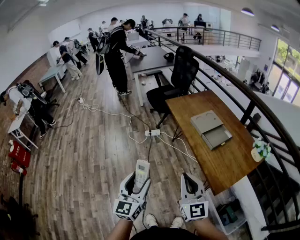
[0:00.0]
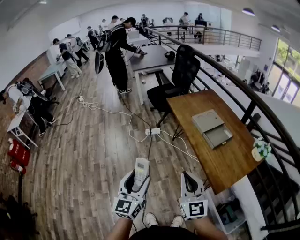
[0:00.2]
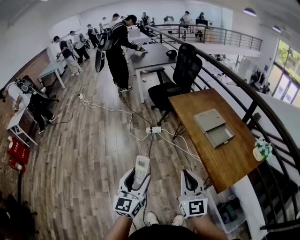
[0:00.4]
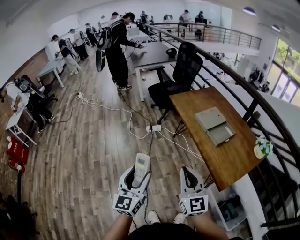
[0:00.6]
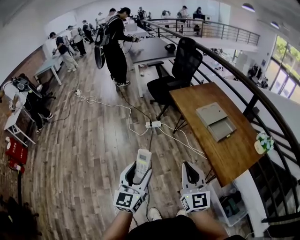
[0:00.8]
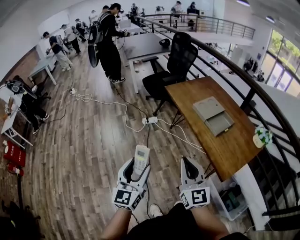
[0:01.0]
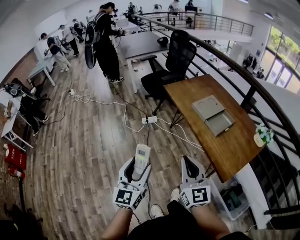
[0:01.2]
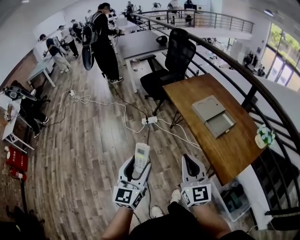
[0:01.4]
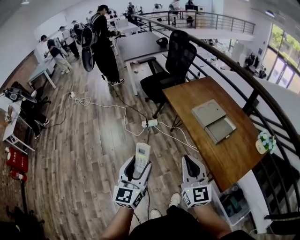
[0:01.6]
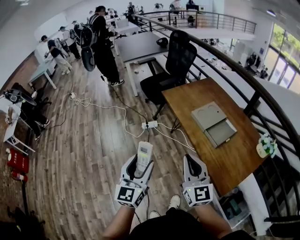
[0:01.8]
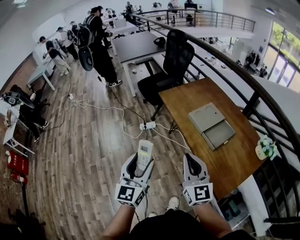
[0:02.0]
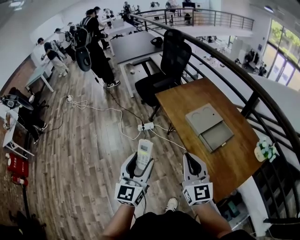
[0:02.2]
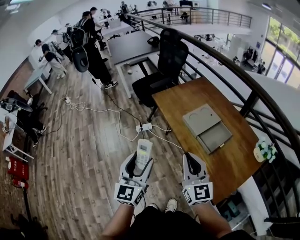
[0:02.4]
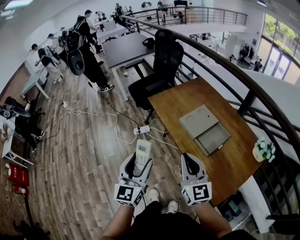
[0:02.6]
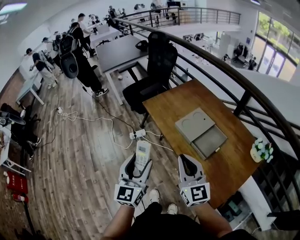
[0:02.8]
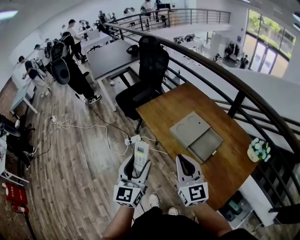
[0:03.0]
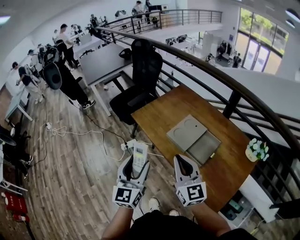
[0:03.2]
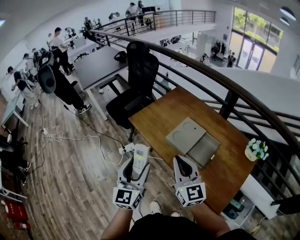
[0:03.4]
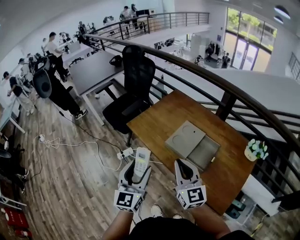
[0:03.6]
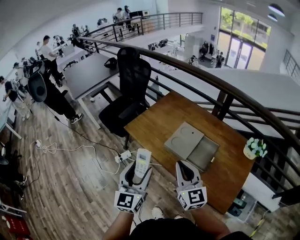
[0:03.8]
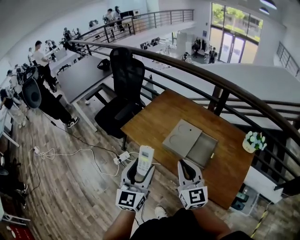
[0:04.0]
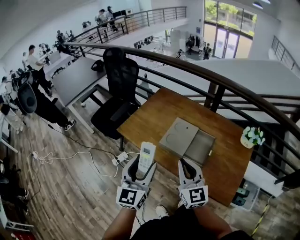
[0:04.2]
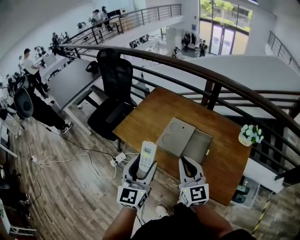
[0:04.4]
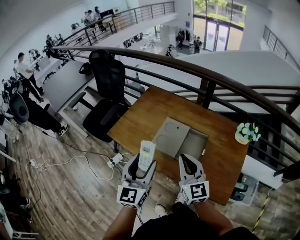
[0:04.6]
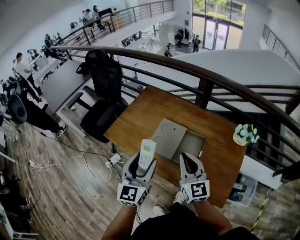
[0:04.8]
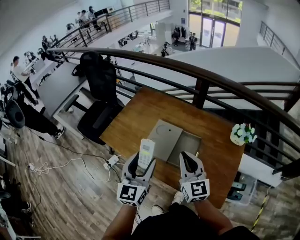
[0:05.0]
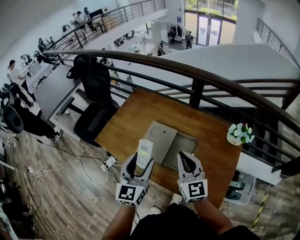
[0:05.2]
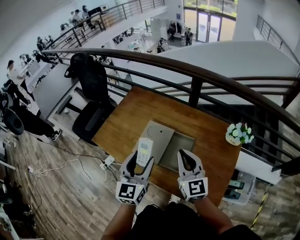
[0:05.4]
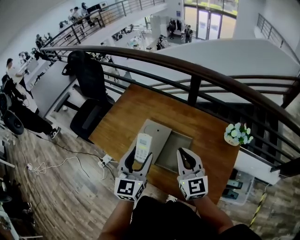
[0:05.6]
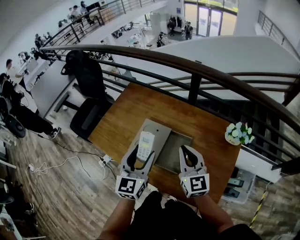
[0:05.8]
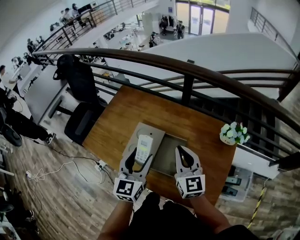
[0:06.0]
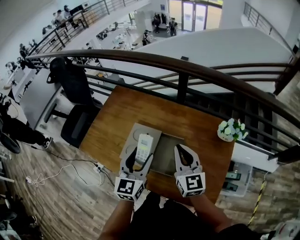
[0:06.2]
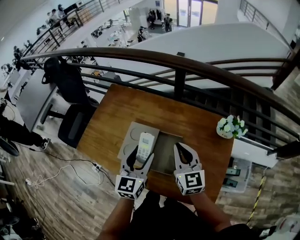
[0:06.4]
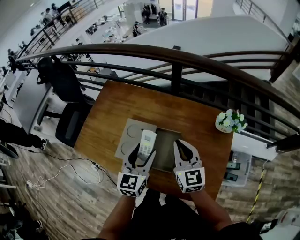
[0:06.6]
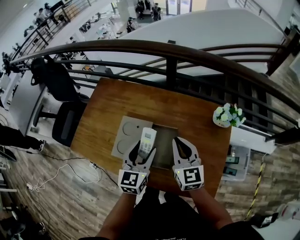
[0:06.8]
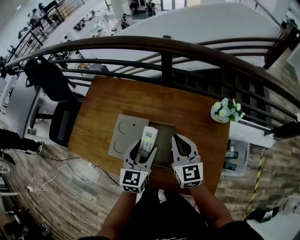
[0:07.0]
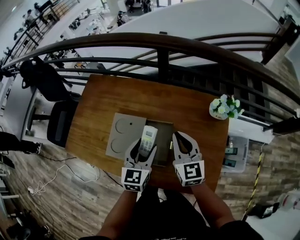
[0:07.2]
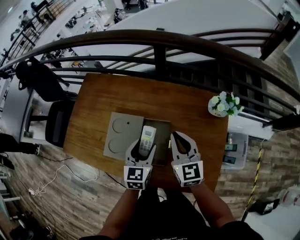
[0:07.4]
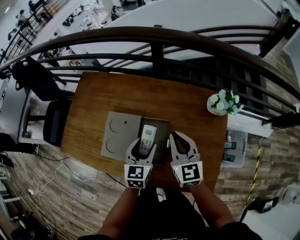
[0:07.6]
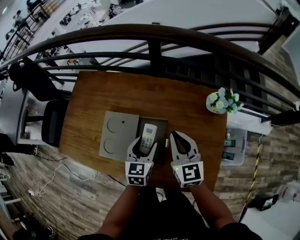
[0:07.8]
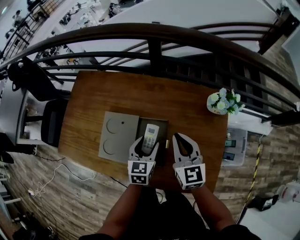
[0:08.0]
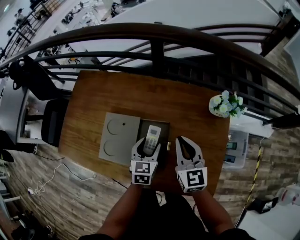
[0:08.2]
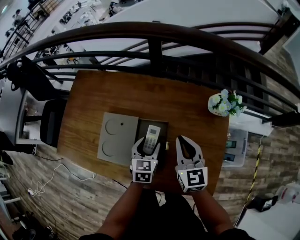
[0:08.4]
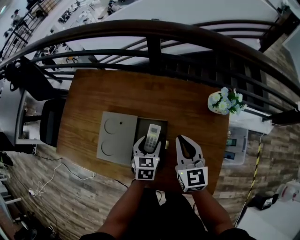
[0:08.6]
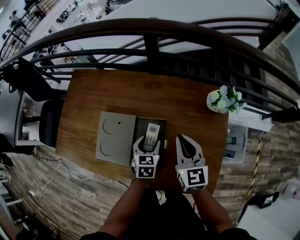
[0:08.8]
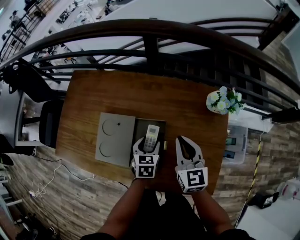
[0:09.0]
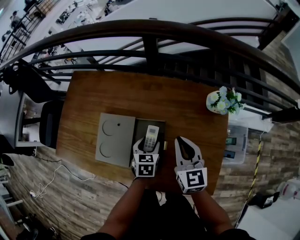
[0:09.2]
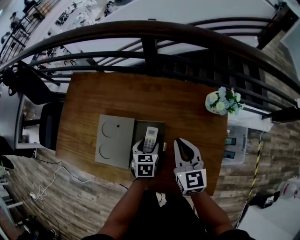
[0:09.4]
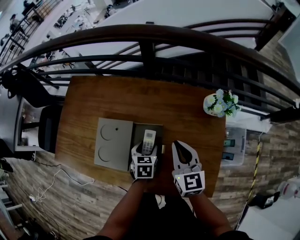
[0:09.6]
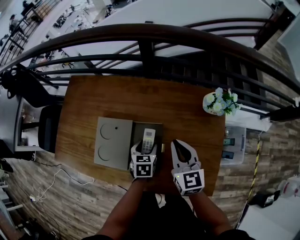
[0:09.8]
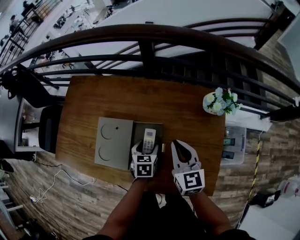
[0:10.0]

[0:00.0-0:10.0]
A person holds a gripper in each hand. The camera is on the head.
0:00.0 to 0:01.4: The grippers both shift forward by about 10 cm.
0:01.4 to 0:02.8: Both grippers travel together forward and to the right, some 25 cm.
0:02.8 to 0:04.2: Both grippers move forward, approximately 15 cm. The right gripper rotates some 20 degrees, while the left gripper rotates some 20 degrees.
0:04.2 to 0:05.8: Both grippers travel together to the right and forward, about 25 cm.
0:05.8 to 0:07.2: Both grippers move downward, to the right and forward, approximately 15 cm. The left gripper changes its angle by roughly 20 degrees.
0:07.2 to 0:08.6: The left gripper goes approximately 15 cm downward, and rotates some 20 degrees; the right gripper moves roughly 5 cm.
0:08.6 to 0:10.0: There are only small adjustments of the grippers.

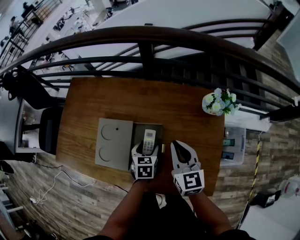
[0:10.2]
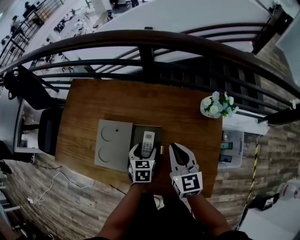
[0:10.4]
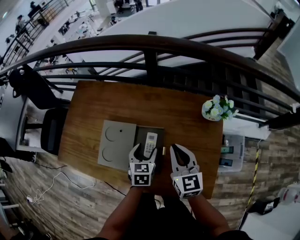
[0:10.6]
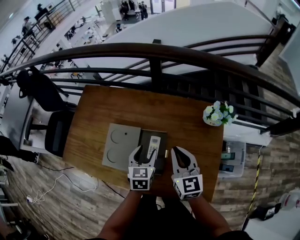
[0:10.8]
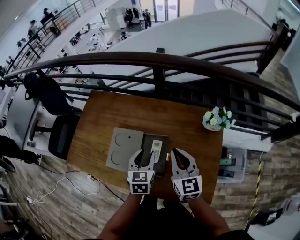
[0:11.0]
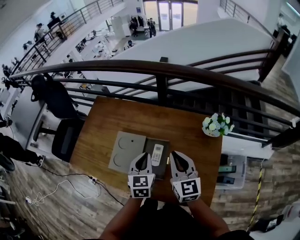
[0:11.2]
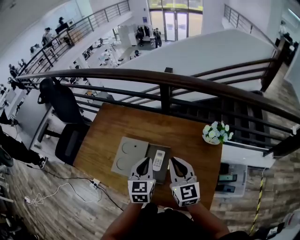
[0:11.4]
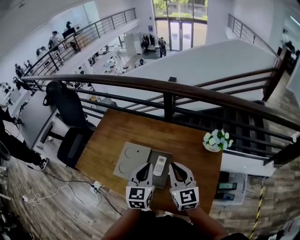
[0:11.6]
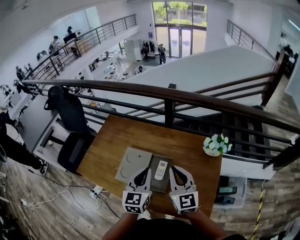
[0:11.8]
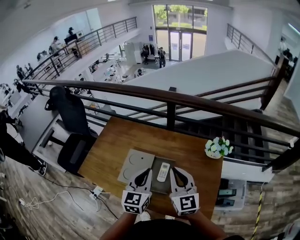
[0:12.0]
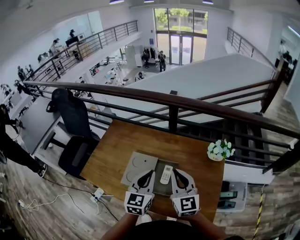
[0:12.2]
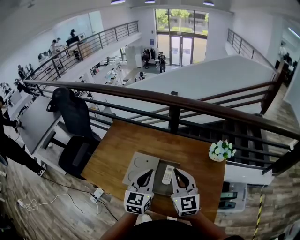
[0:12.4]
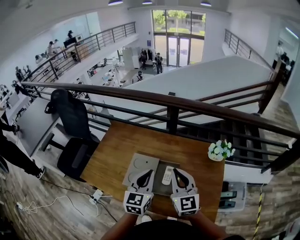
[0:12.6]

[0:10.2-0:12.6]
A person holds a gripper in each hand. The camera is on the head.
0:10.2 to 0:11.4: The right gripper heads upward, covering about 10 cm. The left gripper moves upward, about 25 cm, rotates about 30 degrees, and closes.
0:11.4 to 0:12.6: The right gripper moves to the left and upward, some 10 cm. Meanwhile the left gripper travels upward and to the left by some 10 cm.

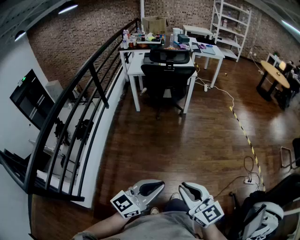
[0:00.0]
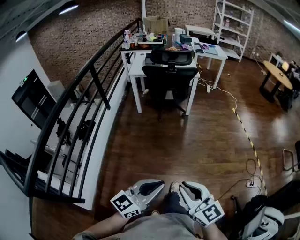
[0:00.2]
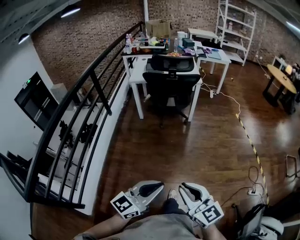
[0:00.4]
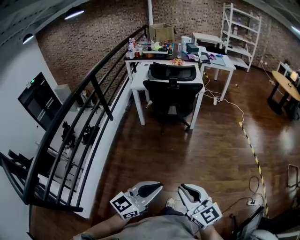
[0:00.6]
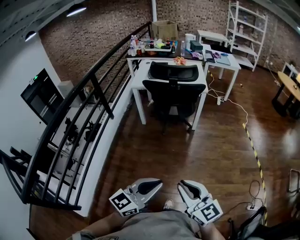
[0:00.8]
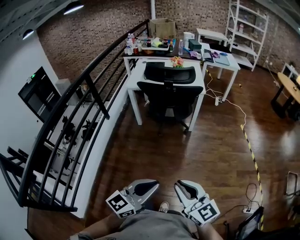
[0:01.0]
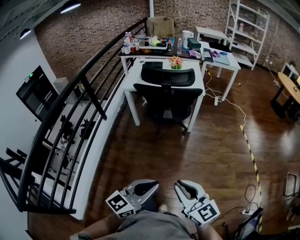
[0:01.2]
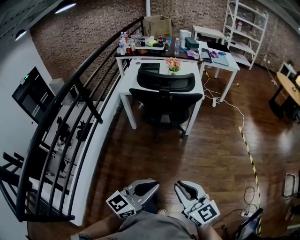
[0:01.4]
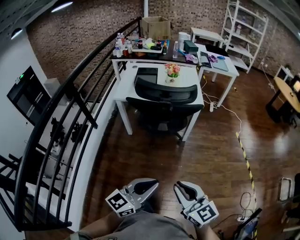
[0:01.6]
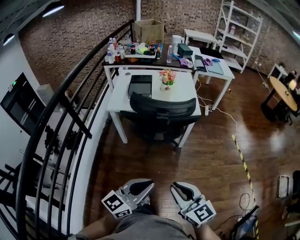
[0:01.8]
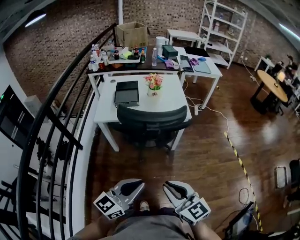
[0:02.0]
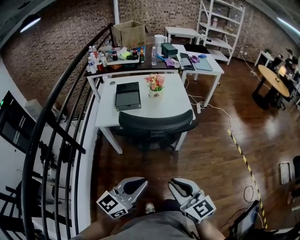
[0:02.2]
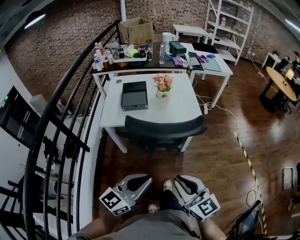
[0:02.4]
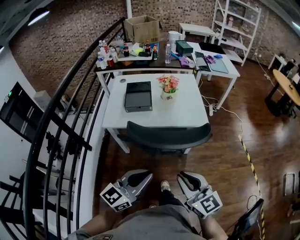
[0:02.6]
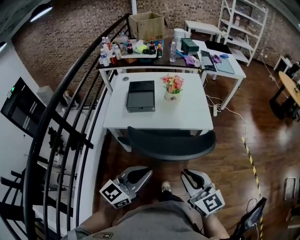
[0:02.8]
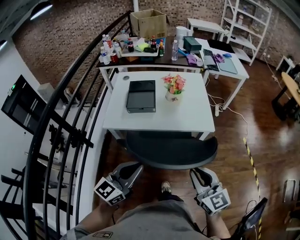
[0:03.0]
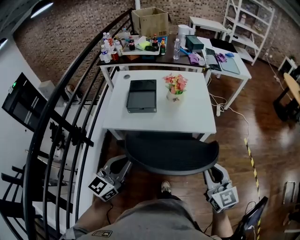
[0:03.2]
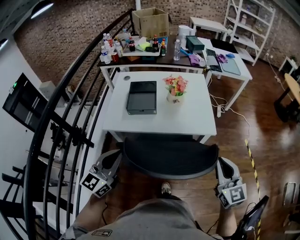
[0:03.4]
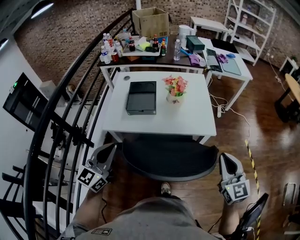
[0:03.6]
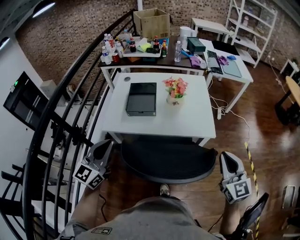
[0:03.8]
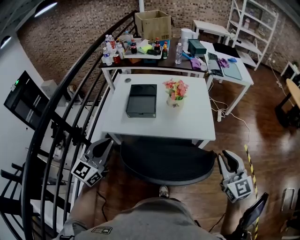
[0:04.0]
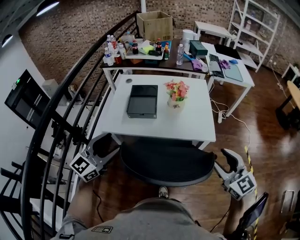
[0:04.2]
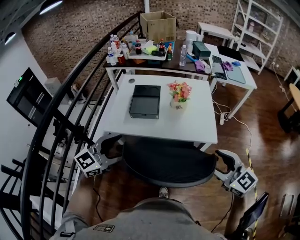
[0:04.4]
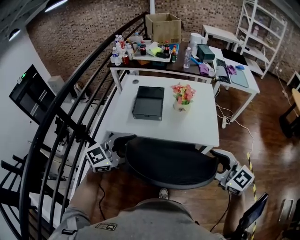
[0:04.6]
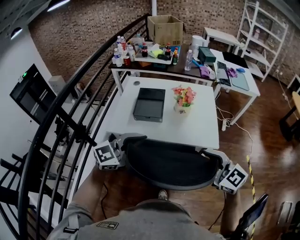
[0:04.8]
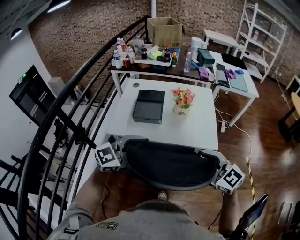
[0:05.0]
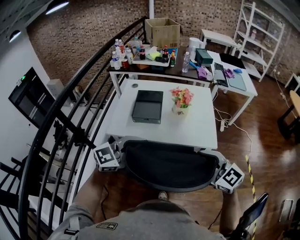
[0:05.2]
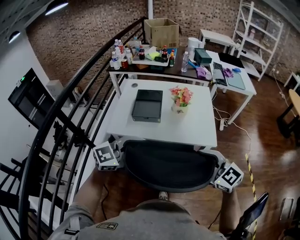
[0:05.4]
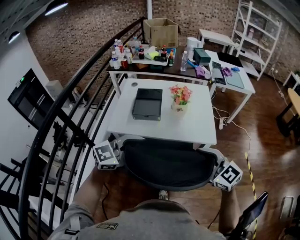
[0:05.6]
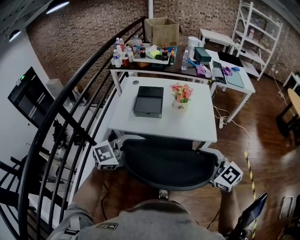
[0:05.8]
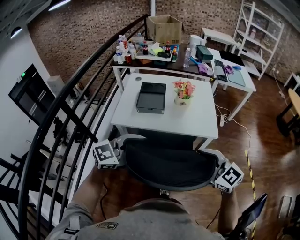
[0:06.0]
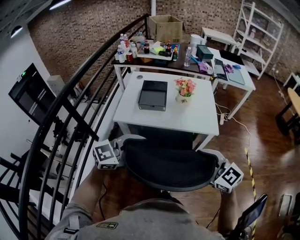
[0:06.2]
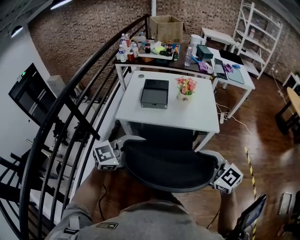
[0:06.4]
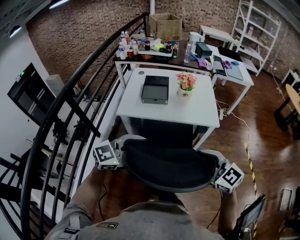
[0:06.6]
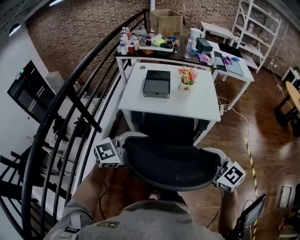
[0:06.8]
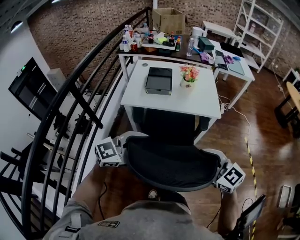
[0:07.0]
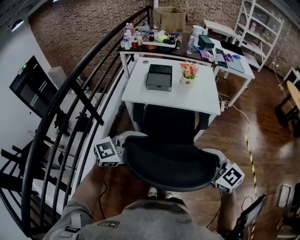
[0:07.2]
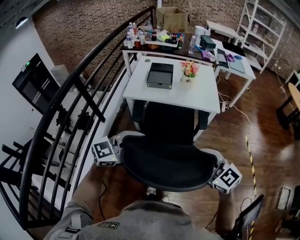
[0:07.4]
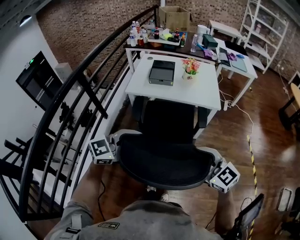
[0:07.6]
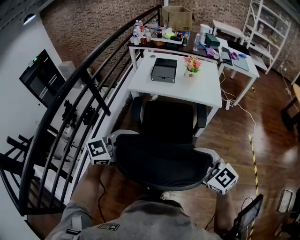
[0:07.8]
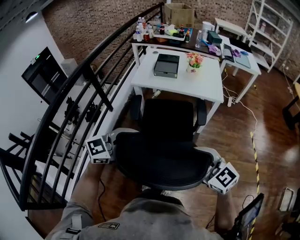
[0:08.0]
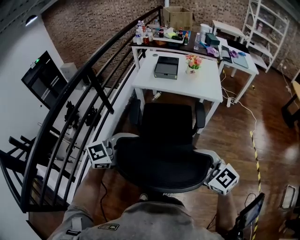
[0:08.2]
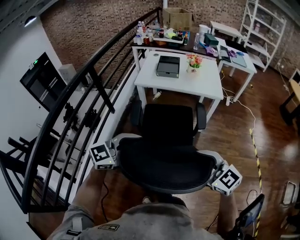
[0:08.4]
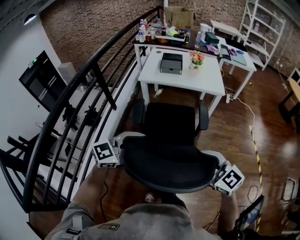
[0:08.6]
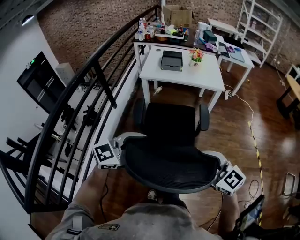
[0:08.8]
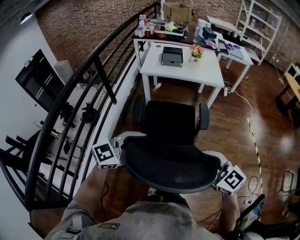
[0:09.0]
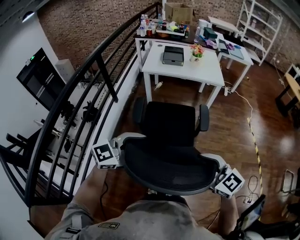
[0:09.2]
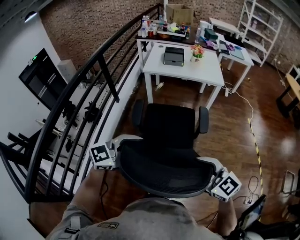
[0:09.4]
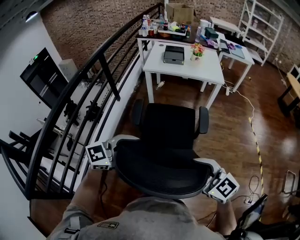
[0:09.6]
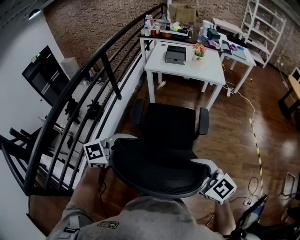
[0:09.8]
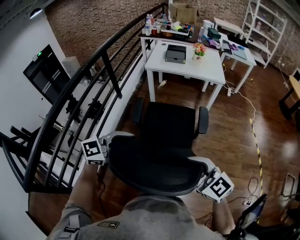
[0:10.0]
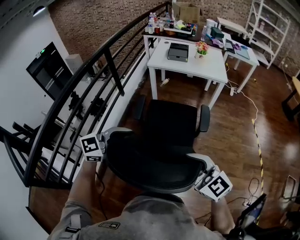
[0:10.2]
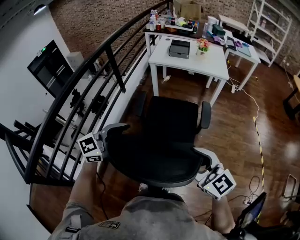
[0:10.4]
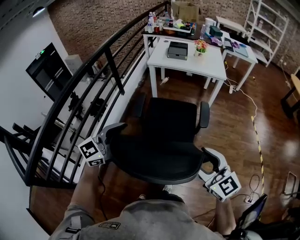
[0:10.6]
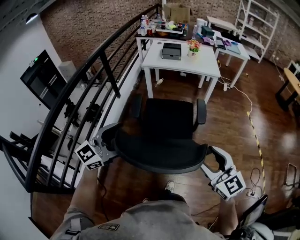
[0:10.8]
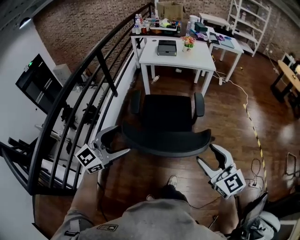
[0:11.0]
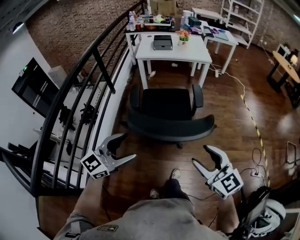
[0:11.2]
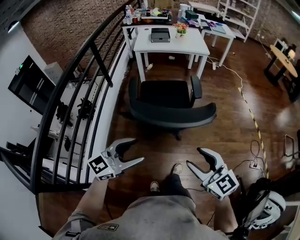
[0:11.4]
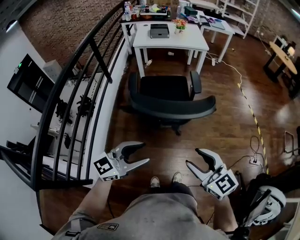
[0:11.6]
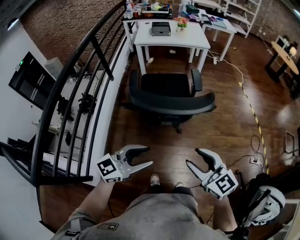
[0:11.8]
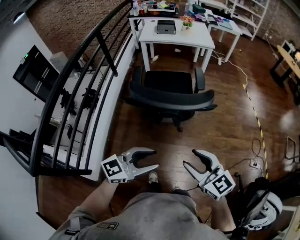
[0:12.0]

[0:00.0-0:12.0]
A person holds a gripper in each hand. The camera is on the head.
0:00.0 to 0:01.6: The pair of grippers is taken forward, about 50 cm.
0:01.6 to 0:03.0: The grippers both shift forward by about 35 cm.
0:03.0 to 0:04.4: The right gripper moves forward and to the right, about 10 cm, turns by approximately 20 degrees, and opens up, while the left gripper moves forward and to the left, approximately 10 cm, and opens up.
0:04.4 to 0:06.0: The right gripper is displaced to the left and backward by some 10 cm; the left gripper moves to the right and backward, roughly 10 cm.
0:06.0 to 0:07.6: The grippers both shift backward by roughly 25 cm.
0:07.6 to 0:09.0: Both grippers move backward, about 25 cm.
0:09.0 to 0:10.4: Both grippers move backward, some 10 cm.
0:10.4 to 0:12.0: Both grippers move backward, about 25 cm. The left gripper closes.
